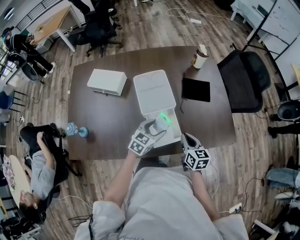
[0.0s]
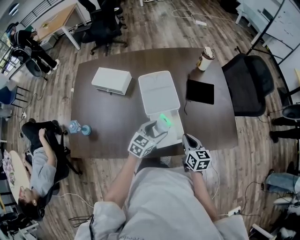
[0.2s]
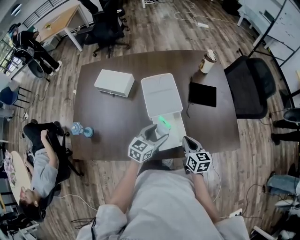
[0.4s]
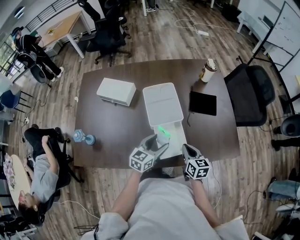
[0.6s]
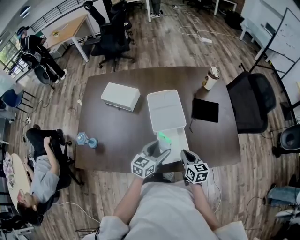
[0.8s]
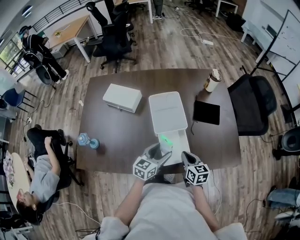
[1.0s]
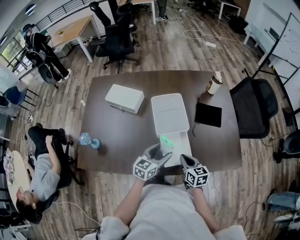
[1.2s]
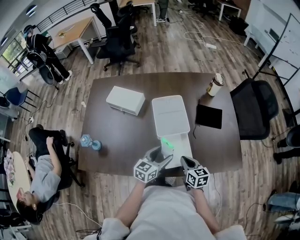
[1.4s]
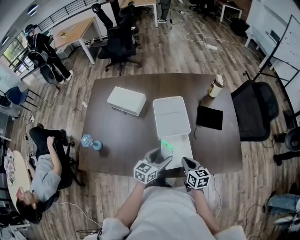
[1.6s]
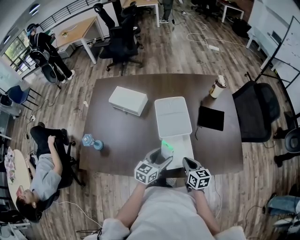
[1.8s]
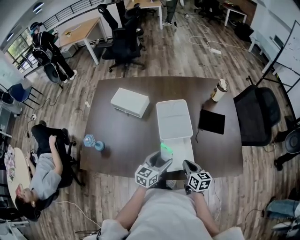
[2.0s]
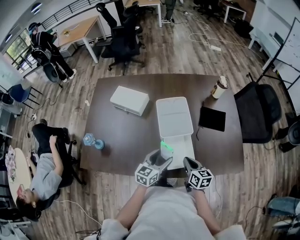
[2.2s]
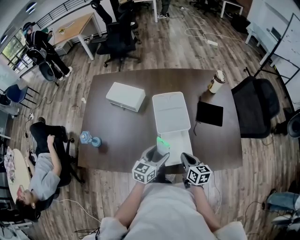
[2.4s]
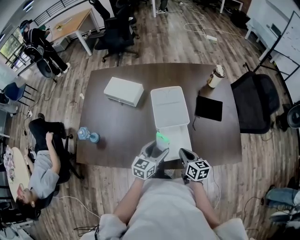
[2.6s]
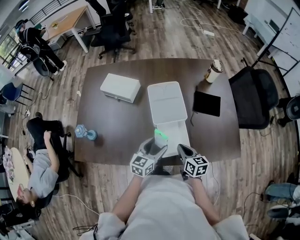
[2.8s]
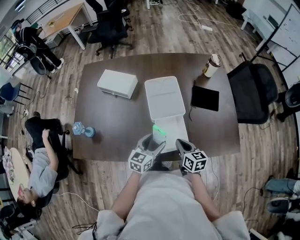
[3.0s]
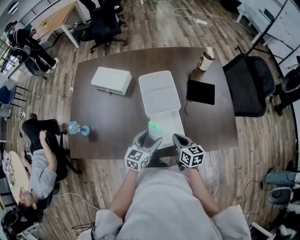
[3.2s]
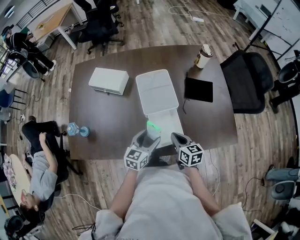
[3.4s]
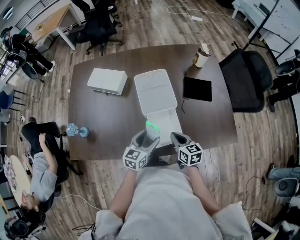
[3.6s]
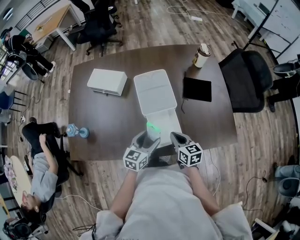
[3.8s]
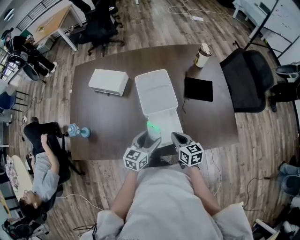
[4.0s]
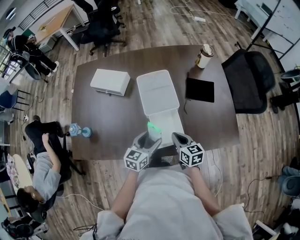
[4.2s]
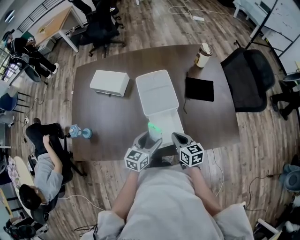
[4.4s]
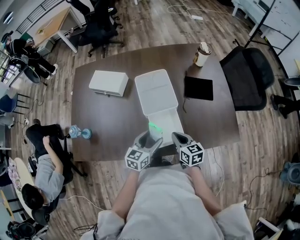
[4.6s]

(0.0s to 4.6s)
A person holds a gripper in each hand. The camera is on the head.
0.0s - 1.6s: Both grippers move to the left, roughly 5 cm. The left gripper swivels roughly 20 degrees.
1.6s - 4.6s: There are only small adjustments of the grippers.

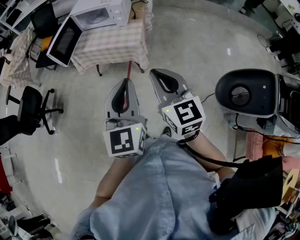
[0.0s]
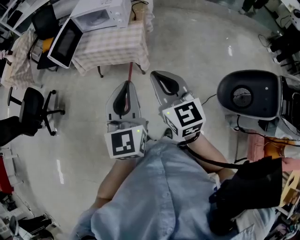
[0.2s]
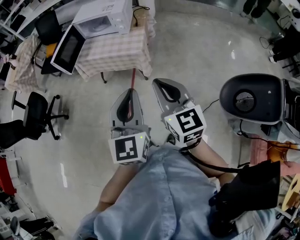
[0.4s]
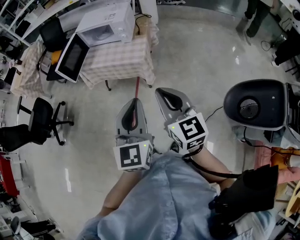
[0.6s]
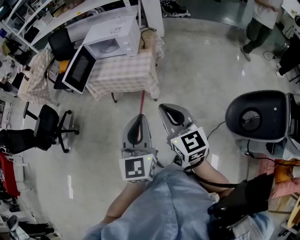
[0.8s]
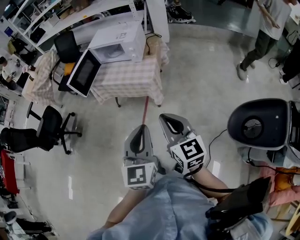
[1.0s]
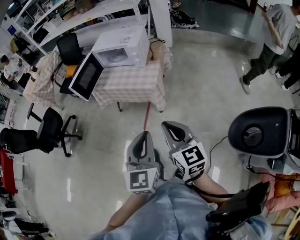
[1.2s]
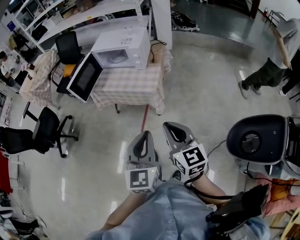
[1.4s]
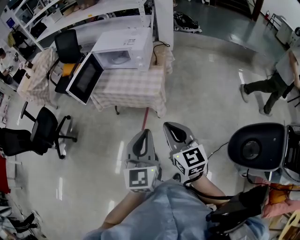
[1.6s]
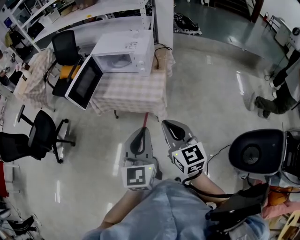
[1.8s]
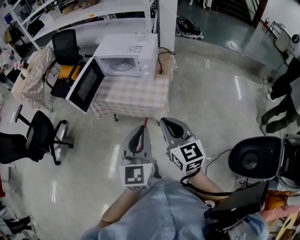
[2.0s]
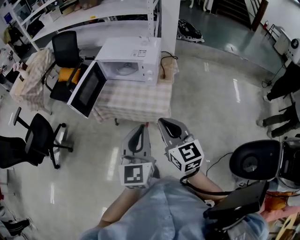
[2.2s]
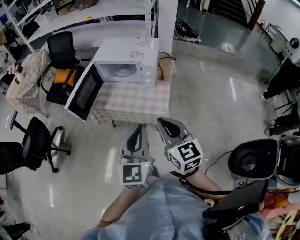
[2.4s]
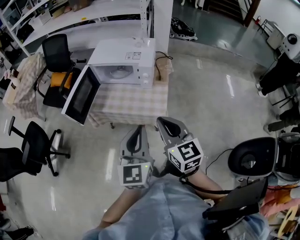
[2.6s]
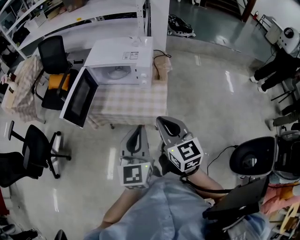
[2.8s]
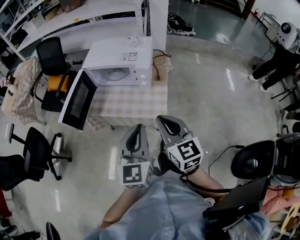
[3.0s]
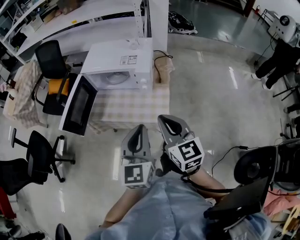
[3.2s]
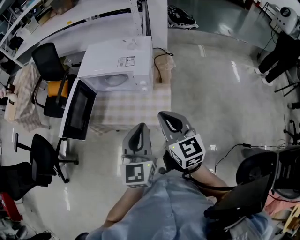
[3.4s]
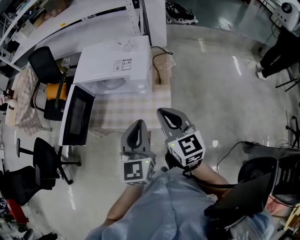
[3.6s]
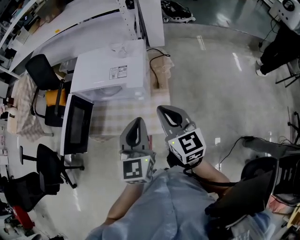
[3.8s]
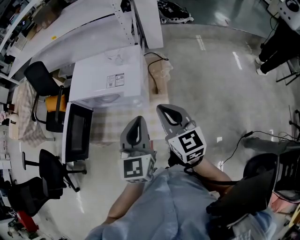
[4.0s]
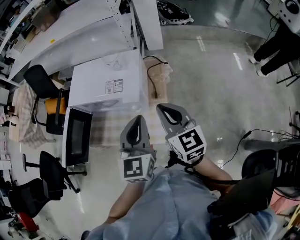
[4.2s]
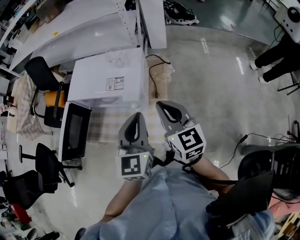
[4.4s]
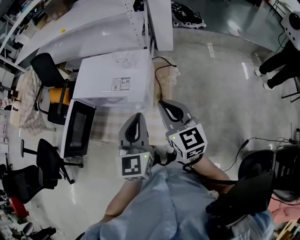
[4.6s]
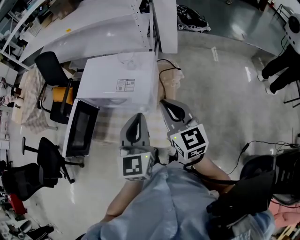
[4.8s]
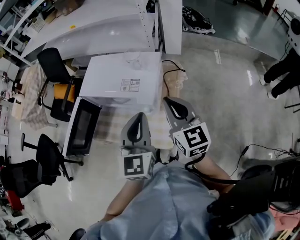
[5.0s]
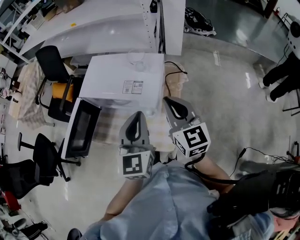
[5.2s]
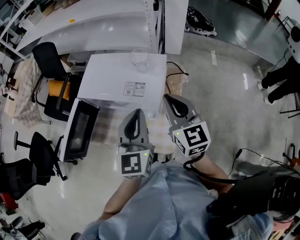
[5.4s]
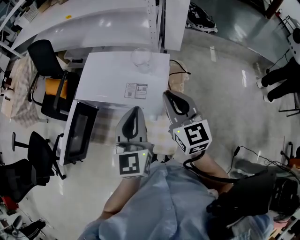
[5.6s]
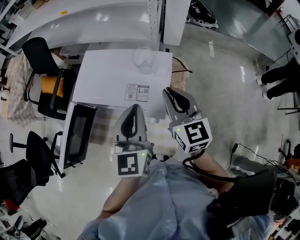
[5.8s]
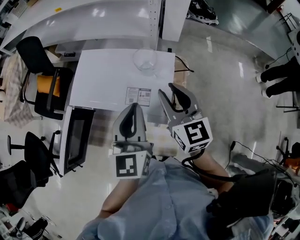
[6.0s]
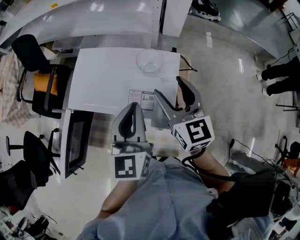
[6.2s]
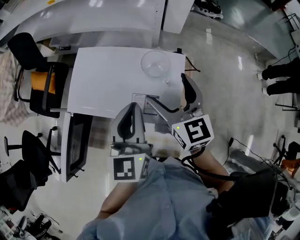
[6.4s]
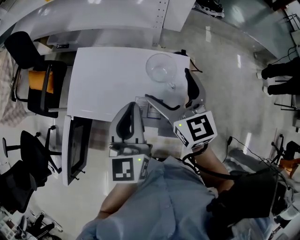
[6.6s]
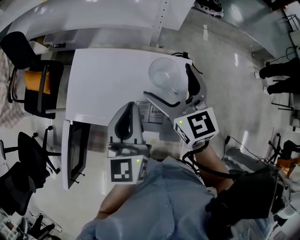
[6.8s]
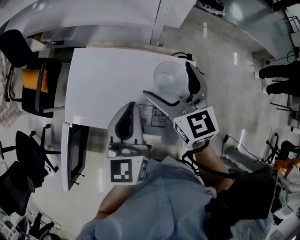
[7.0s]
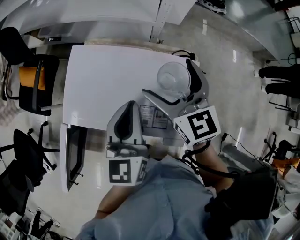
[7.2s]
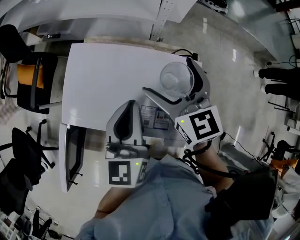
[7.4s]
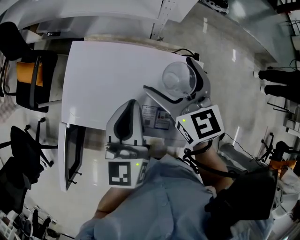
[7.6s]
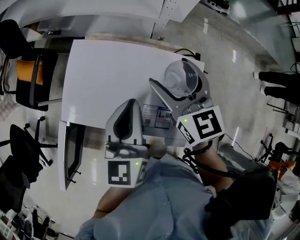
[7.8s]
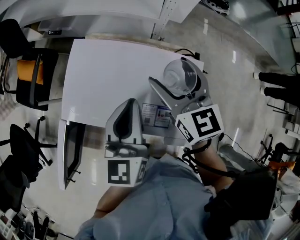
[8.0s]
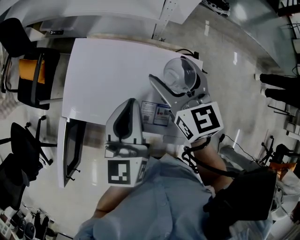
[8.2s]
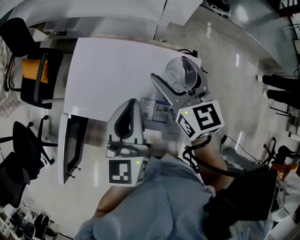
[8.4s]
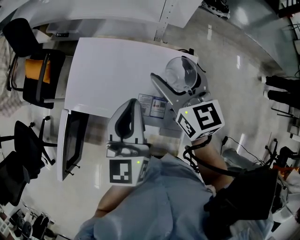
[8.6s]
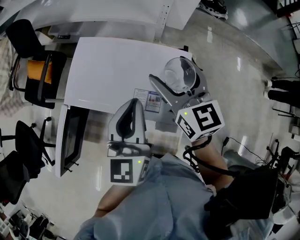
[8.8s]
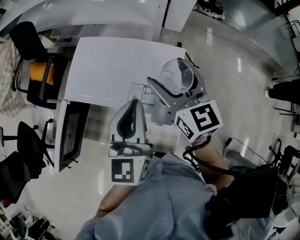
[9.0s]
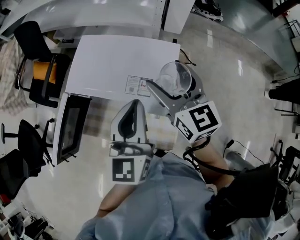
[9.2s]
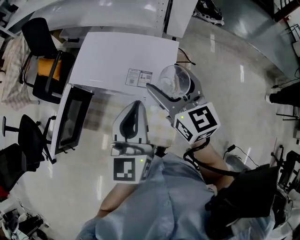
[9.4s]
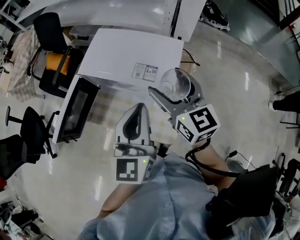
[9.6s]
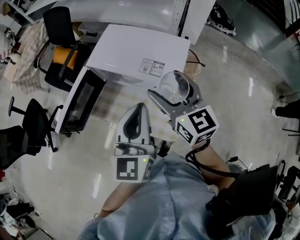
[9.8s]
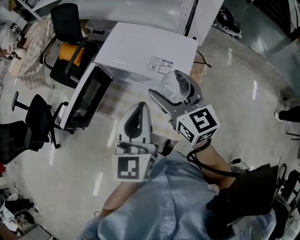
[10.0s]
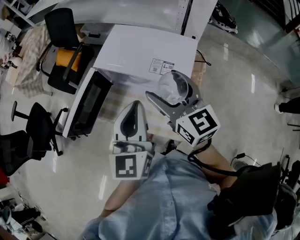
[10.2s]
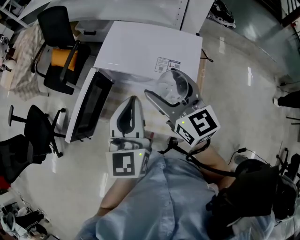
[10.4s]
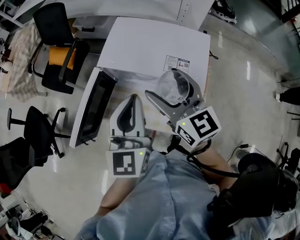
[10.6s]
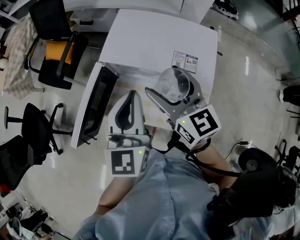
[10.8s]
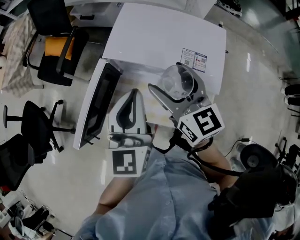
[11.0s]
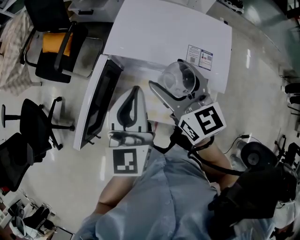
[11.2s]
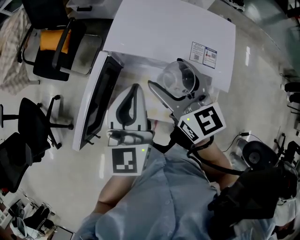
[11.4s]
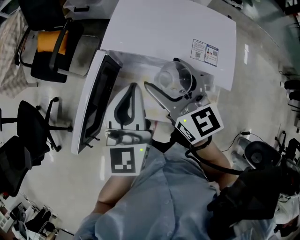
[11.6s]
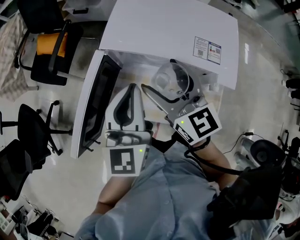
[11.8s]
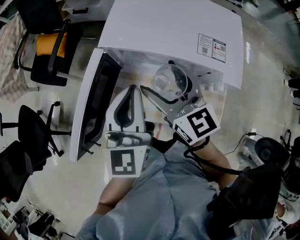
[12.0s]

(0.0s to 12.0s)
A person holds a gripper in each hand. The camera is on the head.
0.0s - 1.6s: The left gripper heads forward, covering roughly 10 cm; the right gripper heads forward and downward, covering roughly 10 cm.
1.6s - 3.0s: Both grippers travel together forward, about 25 cm.
3.0s - 4.4s: The two grippers go approximately 25 cm forward and to the right.
4.4s - 6.0s: The right gripper shifts approximately 20 cm forward, while the left gripper travels forward and to the left by about 20 cm.
6.0s - 7.6s: The right gripper shifts approximately 15 cm forward, and opens its fingers. Meanwhile the left gripper travels forward and downward by roughly 10 cm.
7.6s - 9.0s: The right gripper heads backward, covering roughly 10 cm. The left gripper moves backward and upward, roughly 10 cm.
9.0s - 10.4s: Both grippers move to the left and backward, some 15 cm.
10.4s - 12.0s: The right gripper goes some 20 cm downward and to the left. Meanwhile the left gripper heads downward, to the left and forward, covering some 15 cm.

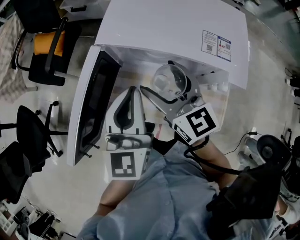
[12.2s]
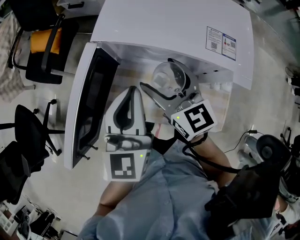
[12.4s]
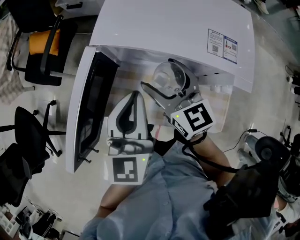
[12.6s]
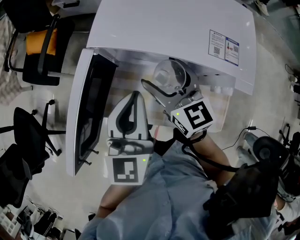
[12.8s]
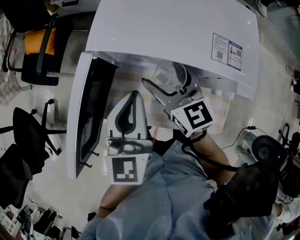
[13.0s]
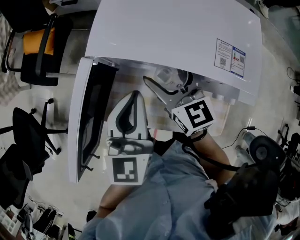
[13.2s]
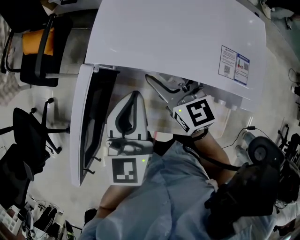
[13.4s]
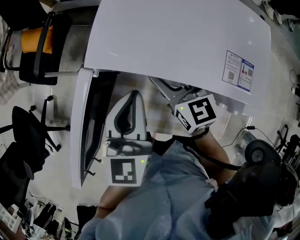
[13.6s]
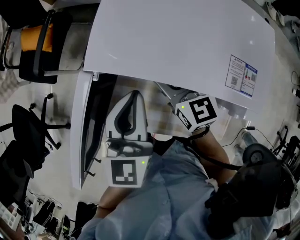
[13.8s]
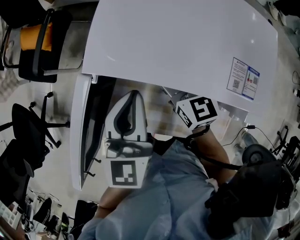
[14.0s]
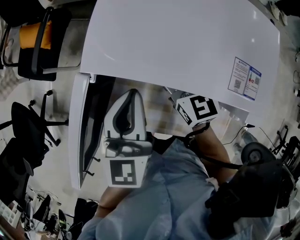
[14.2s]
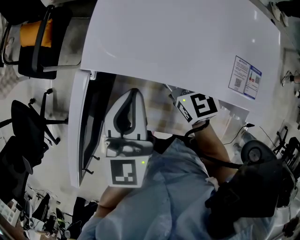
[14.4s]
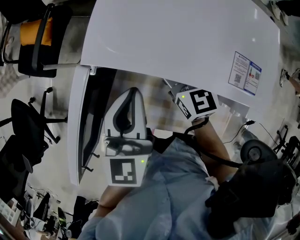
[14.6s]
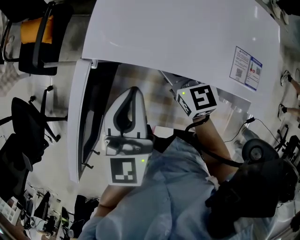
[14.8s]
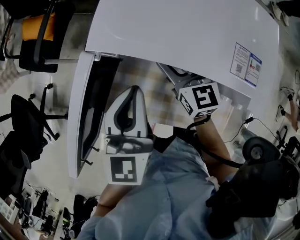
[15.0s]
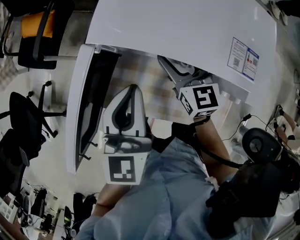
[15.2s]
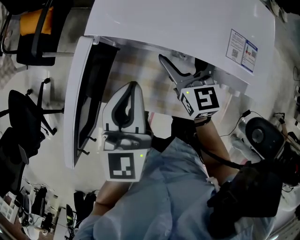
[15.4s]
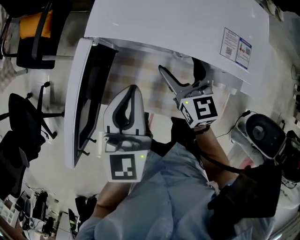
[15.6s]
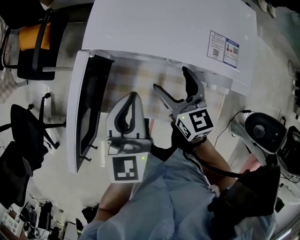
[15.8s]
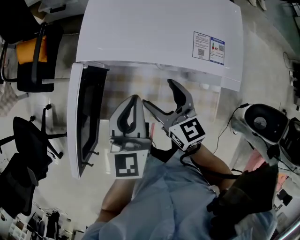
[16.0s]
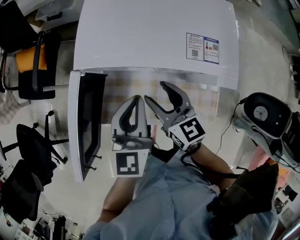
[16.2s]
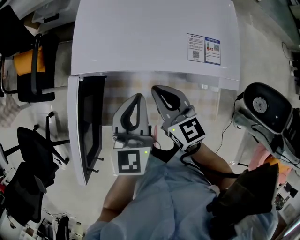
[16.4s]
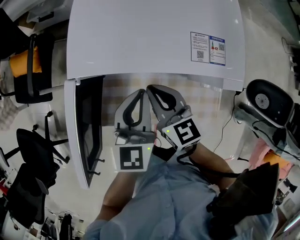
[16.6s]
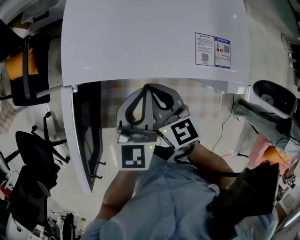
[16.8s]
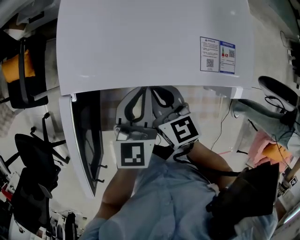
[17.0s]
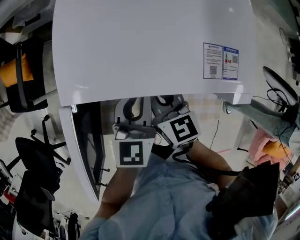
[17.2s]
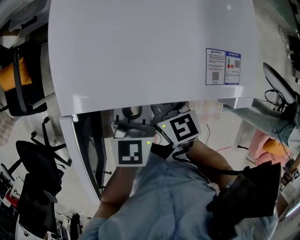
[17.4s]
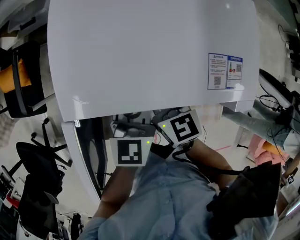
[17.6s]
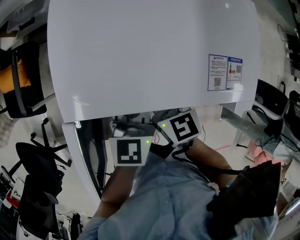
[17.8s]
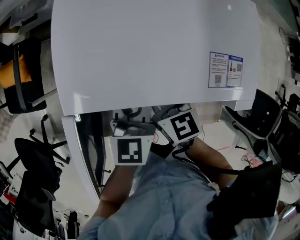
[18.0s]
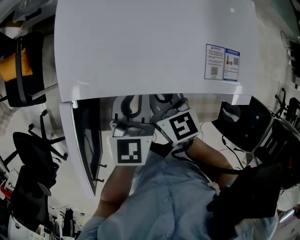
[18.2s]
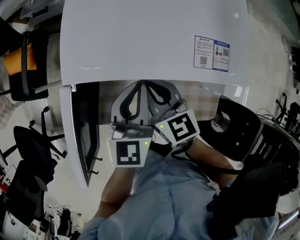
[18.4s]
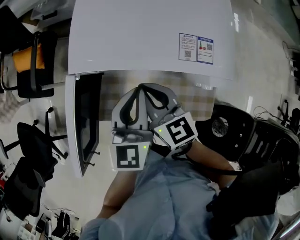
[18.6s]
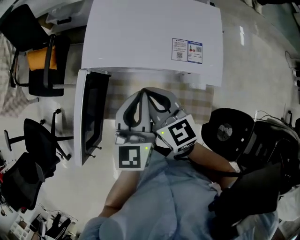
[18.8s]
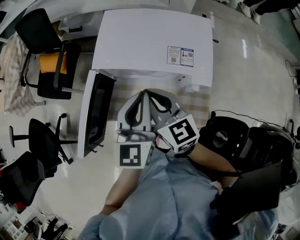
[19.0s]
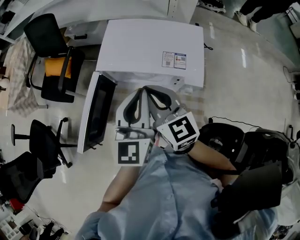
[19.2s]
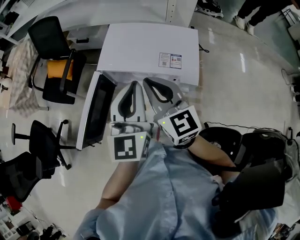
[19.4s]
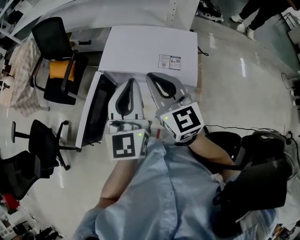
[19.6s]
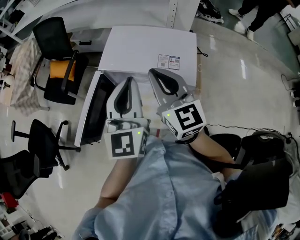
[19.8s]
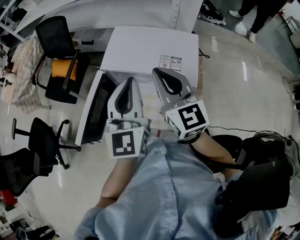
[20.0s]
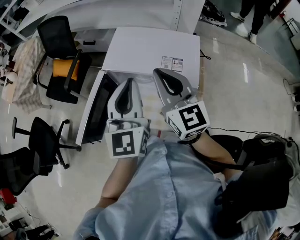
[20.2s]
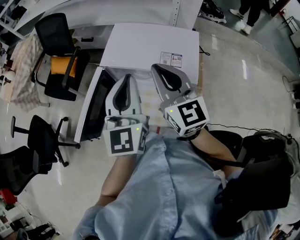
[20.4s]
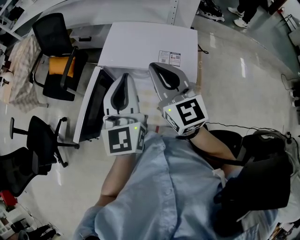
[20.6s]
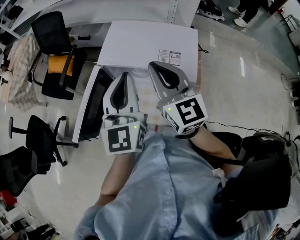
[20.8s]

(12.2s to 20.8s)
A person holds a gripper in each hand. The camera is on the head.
12.2s - 13.6s: The right gripper heads forward and downward, covering approximately 10 cm. Meanwhile the left gripper heads forward, covering some 5 cm.
13.6s - 15.0s: The grippers make only small movements.
15.0s - 16.6s: The right gripper is displaced backward by some 10 cm, and closes up. The left gripper shifts some 5 cm to the right.
16.6s - 18.0s: Both grippers move forward, some 5 cm.
18.0s - 19.4s: Both grippers travel together upward and backward, approximately 30 cm. The right gripper changes its angle by some 30 degrees. The left gripper changes its angle by about 30 degrees.
19.4s - 20.8s: There are only small adjustments of the grippers.
